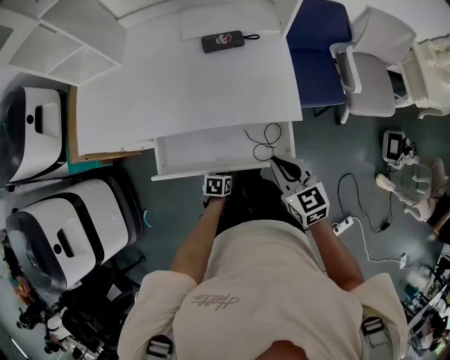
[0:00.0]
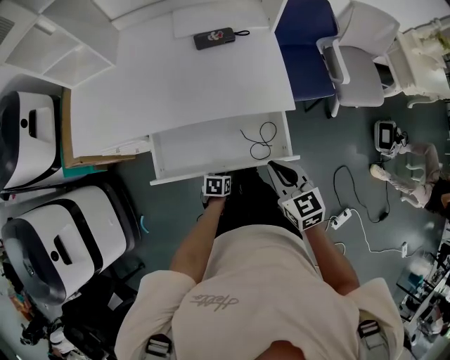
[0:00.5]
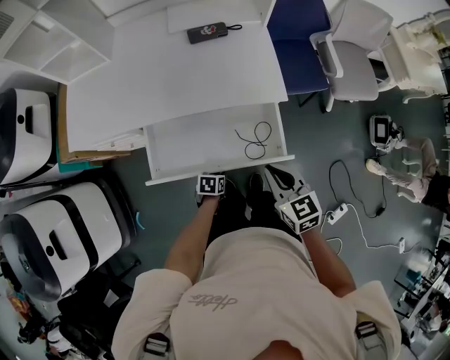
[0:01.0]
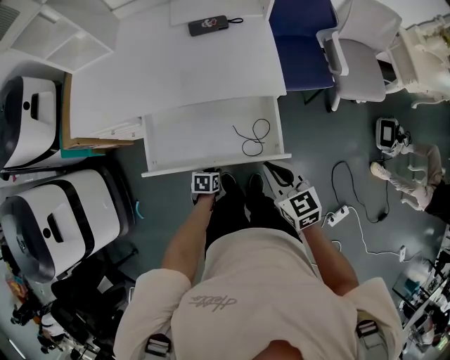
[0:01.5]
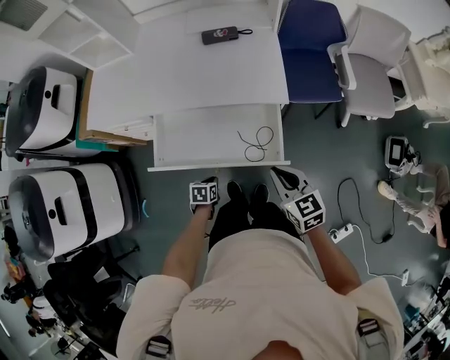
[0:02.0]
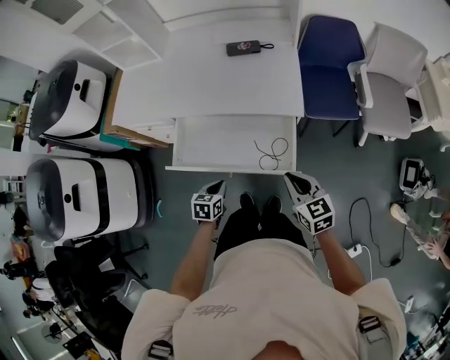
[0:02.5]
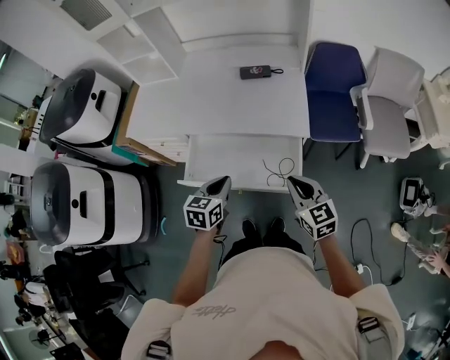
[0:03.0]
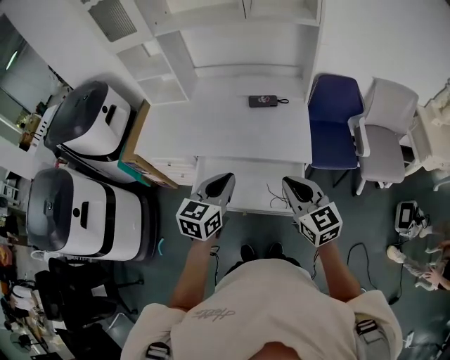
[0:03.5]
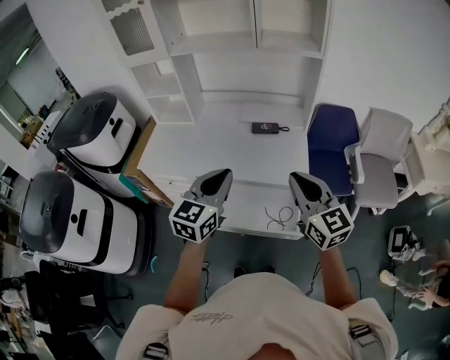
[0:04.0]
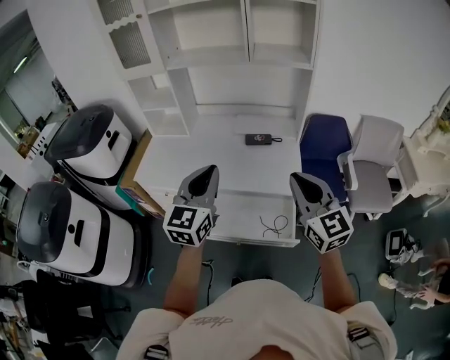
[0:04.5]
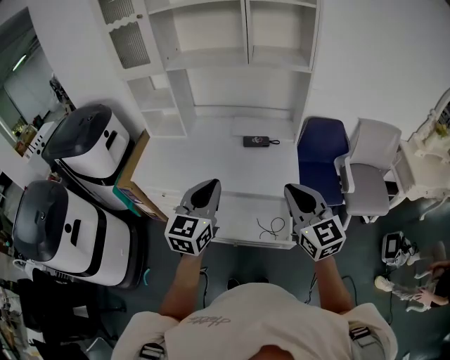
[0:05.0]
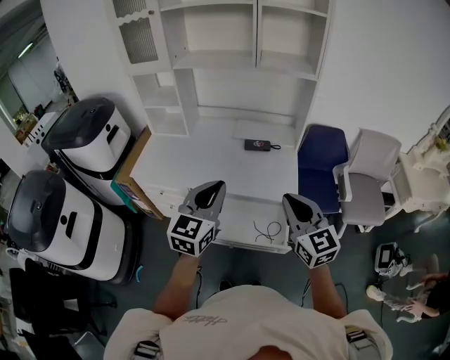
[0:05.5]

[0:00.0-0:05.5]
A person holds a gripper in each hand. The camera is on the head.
0:00.0 to 0:02.0: The right gripper moves backward and to the right, roughly 15 cm, while the left gripper travels backward by about 10 cm.
0:02.0 to 0:03.5: The left gripper shifts about 40 cm upward, and tips its fingers upward by approximately 50 degrees. The right gripper shifts approximately 20 cm upward, and rotates about 20 degrees.
0:03.5 to 0:05.5: Both grippers travel together upward, approximately 10 cm.

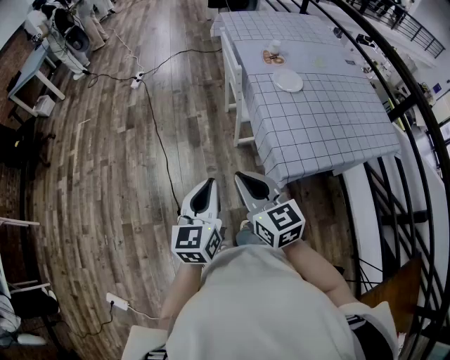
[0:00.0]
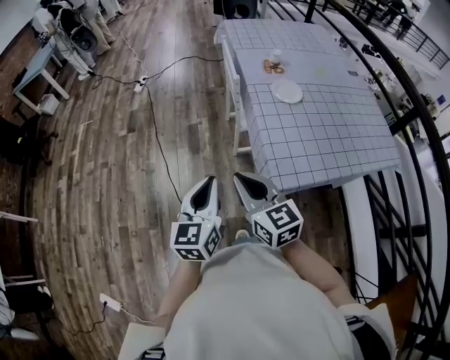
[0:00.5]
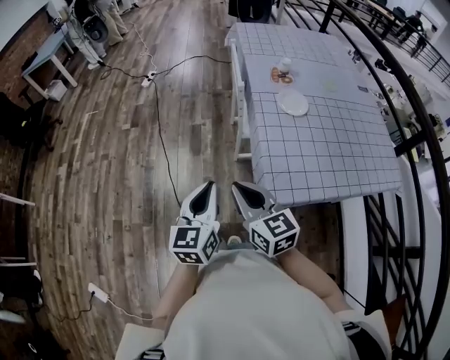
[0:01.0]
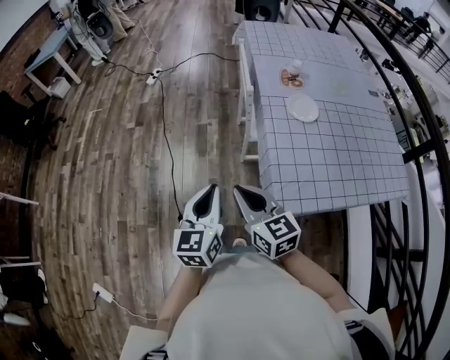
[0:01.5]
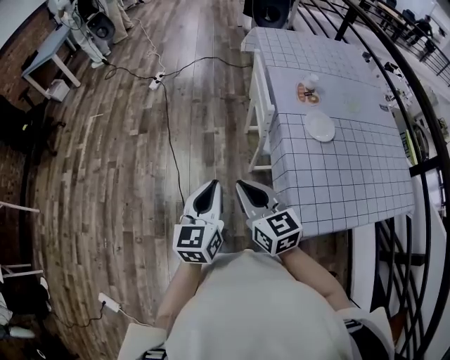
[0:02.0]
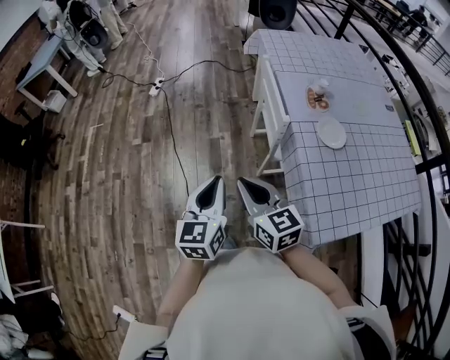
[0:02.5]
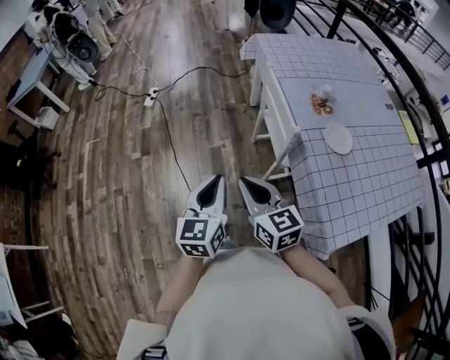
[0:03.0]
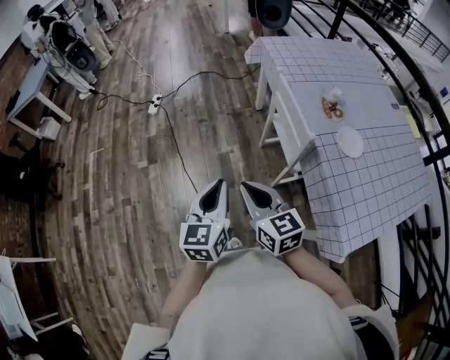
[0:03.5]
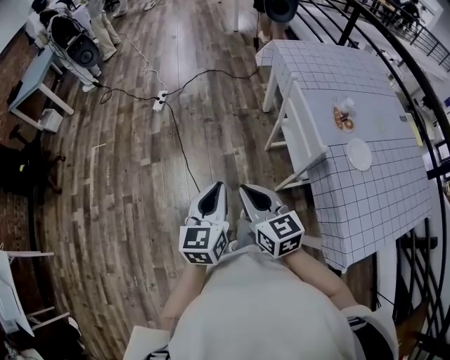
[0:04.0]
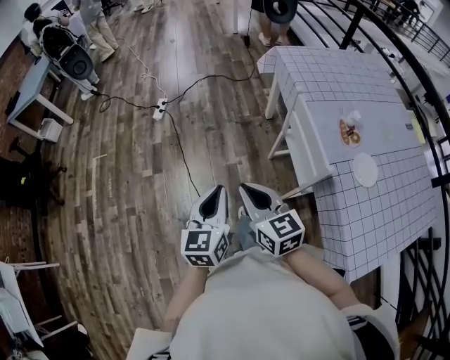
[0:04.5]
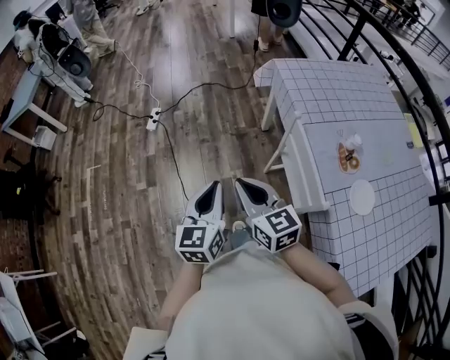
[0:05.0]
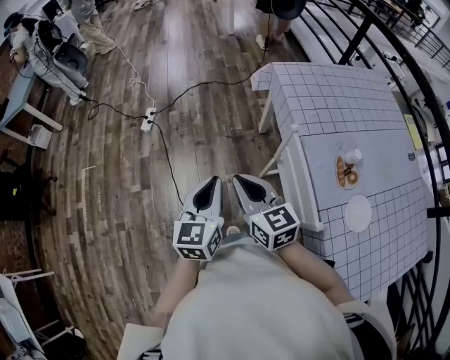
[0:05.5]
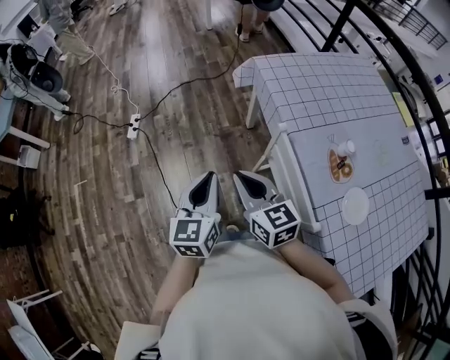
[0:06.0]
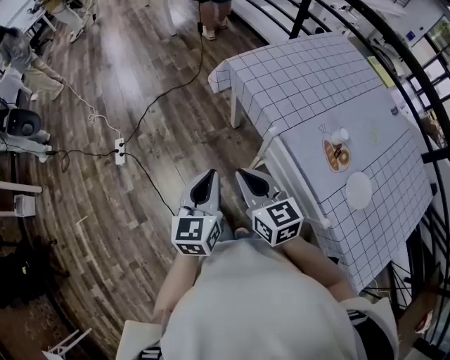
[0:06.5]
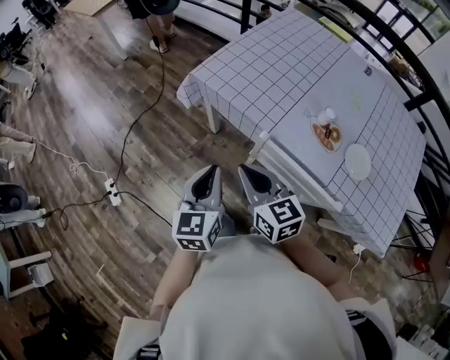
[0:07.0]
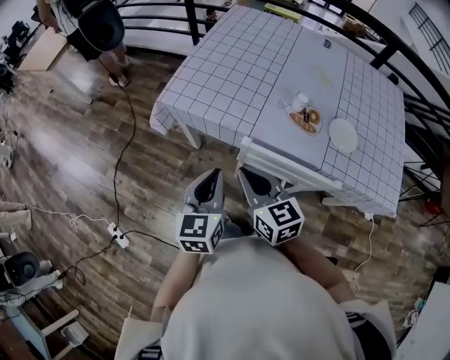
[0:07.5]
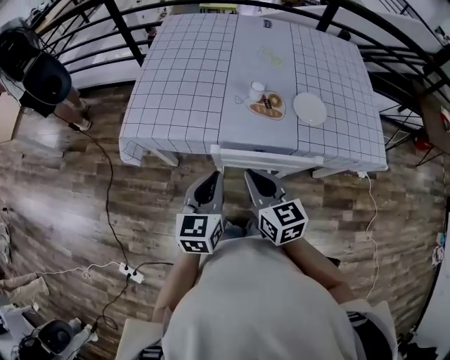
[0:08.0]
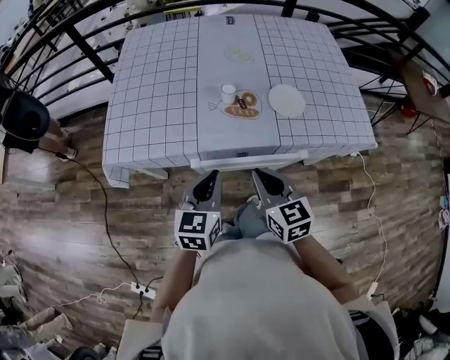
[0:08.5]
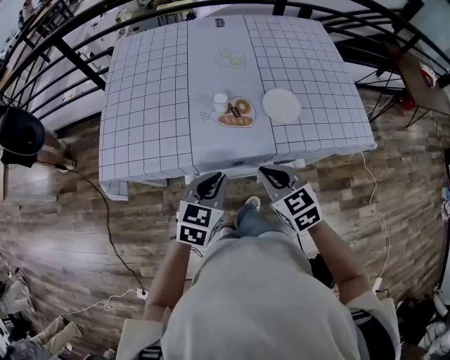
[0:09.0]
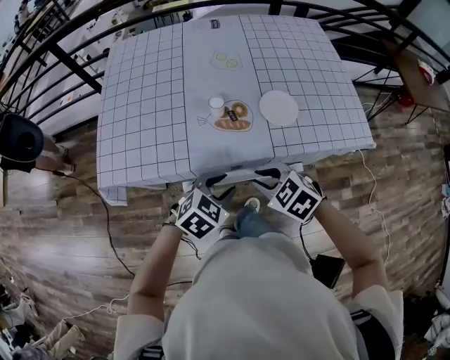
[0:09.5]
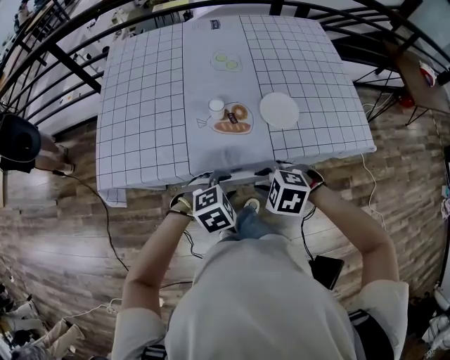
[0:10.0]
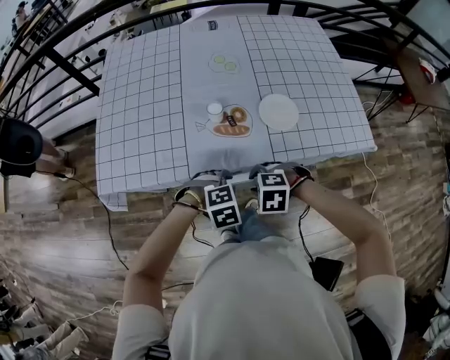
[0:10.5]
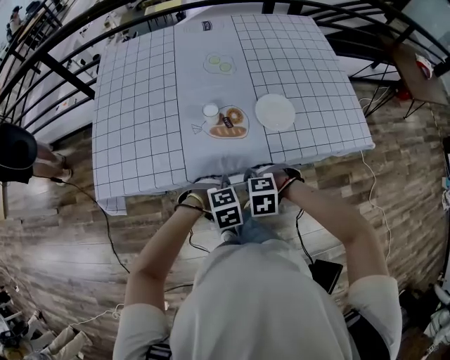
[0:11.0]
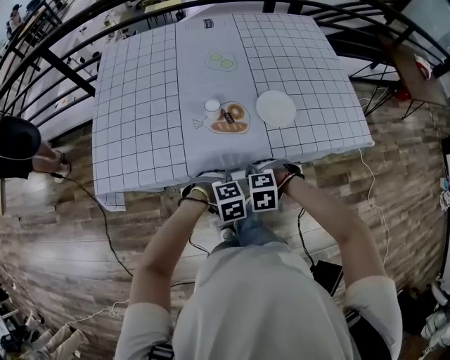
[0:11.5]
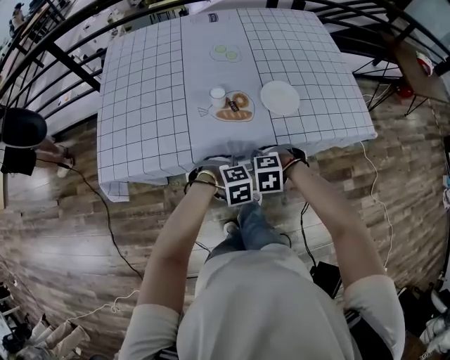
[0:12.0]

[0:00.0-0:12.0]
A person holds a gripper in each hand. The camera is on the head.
0:00.0 to 0:02.0: Both grippers travel together forward, roughly 20 cm.
0:02.0 to 0:04.0: The two grippers go some 25 cm forward and to the left.
0:04.0 to 0:06.0: The two grippers go roughly 30 cm forward.
0:06.0 to 0:08.0: The left gripper changes place by about 20 cm, and changes its angle by approximately 70 degrees, while the right gripper changes place by some 15 cm, and turns by some 70 degrees.
0:08.0 to 0:10.0: The grippers both shift to the right, downward and forward by some 15 cm. The left gripper angles its fingers downward, by roughly 40 degrees, and opens its fingers. The right gripper tips its fingers downward by approximately 50 degrees, and opens.
0:10.0 to 0:12.0: Both grippers move downward, approximately 10 cm. The left gripper turns by about 20 degrees.

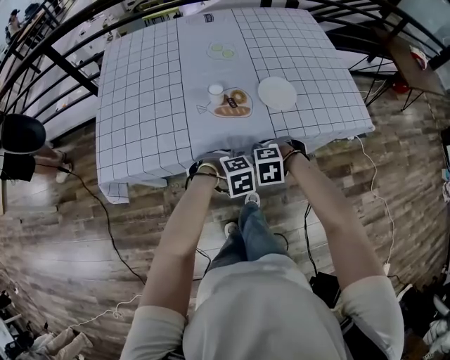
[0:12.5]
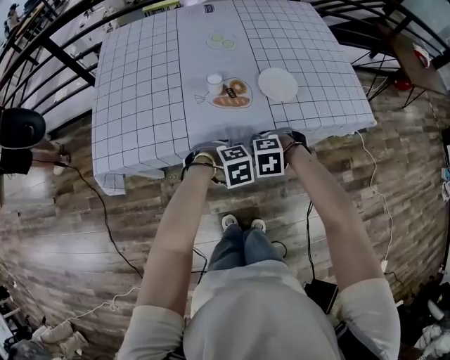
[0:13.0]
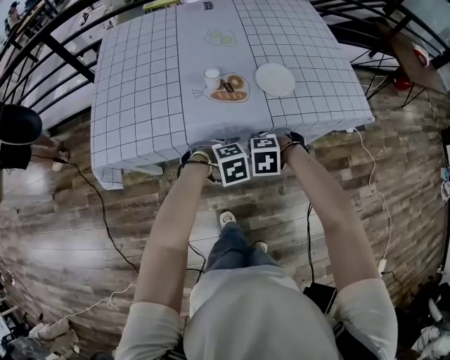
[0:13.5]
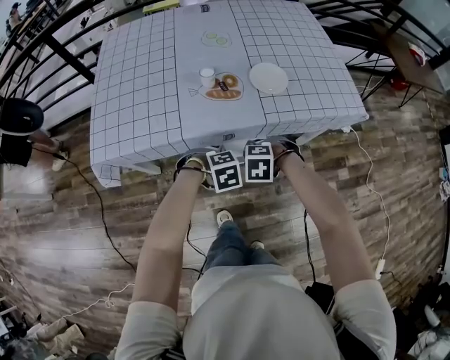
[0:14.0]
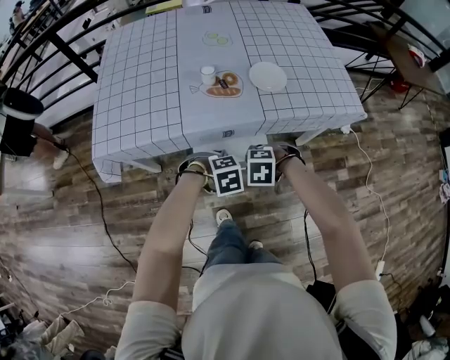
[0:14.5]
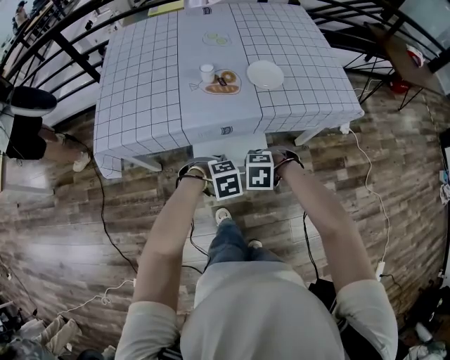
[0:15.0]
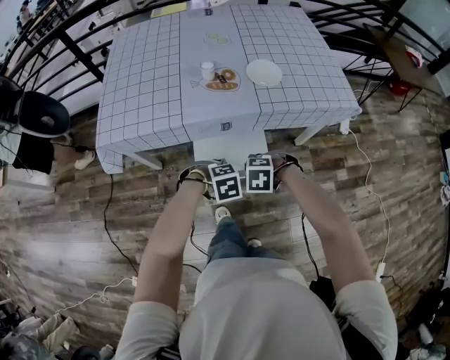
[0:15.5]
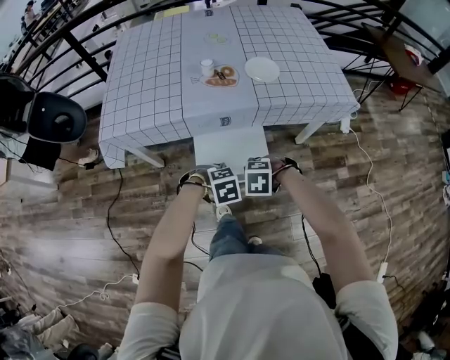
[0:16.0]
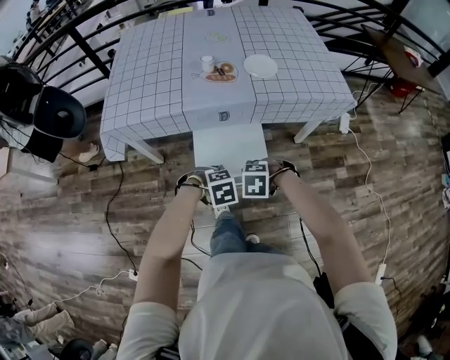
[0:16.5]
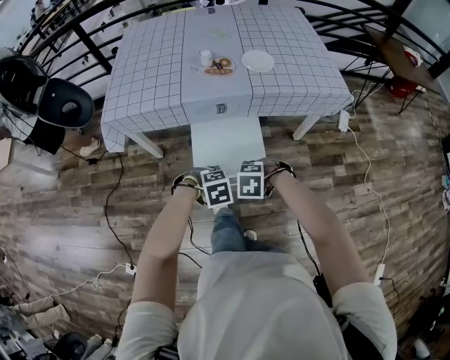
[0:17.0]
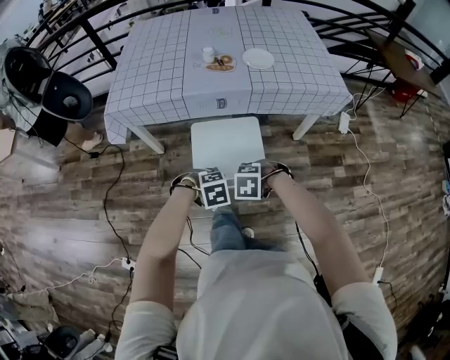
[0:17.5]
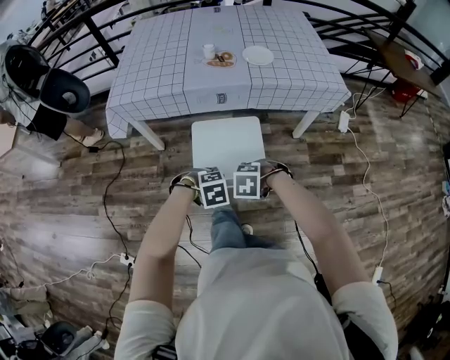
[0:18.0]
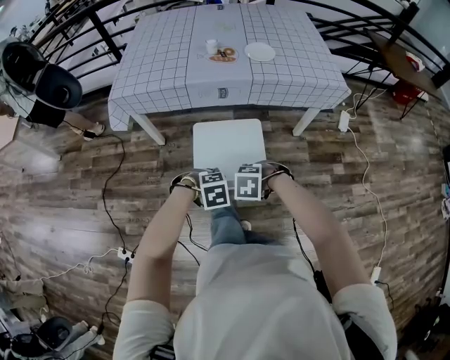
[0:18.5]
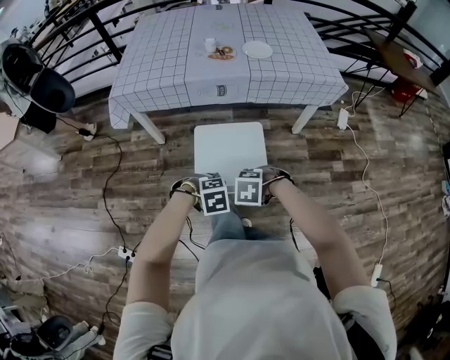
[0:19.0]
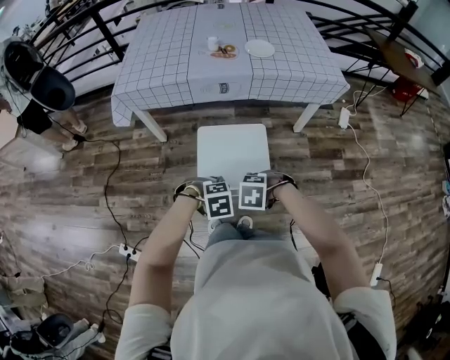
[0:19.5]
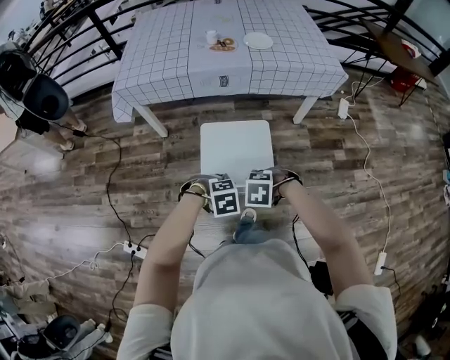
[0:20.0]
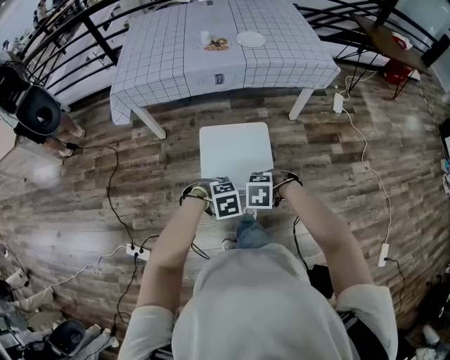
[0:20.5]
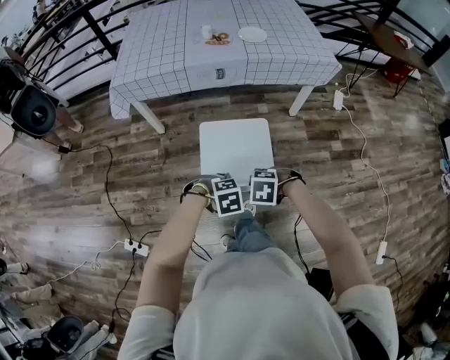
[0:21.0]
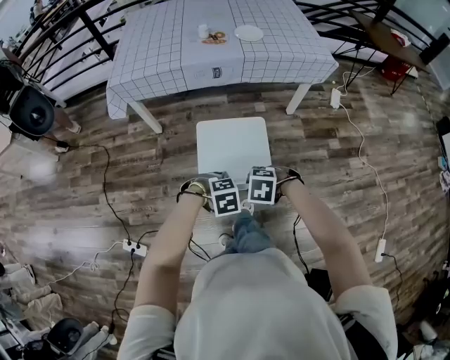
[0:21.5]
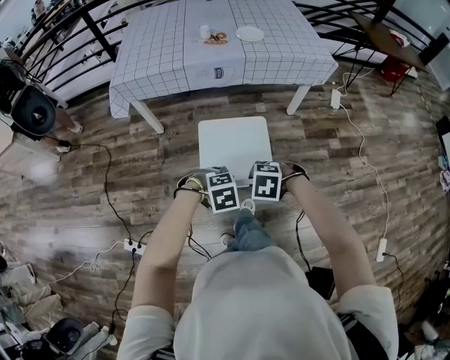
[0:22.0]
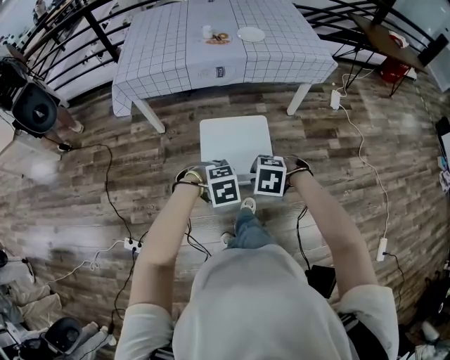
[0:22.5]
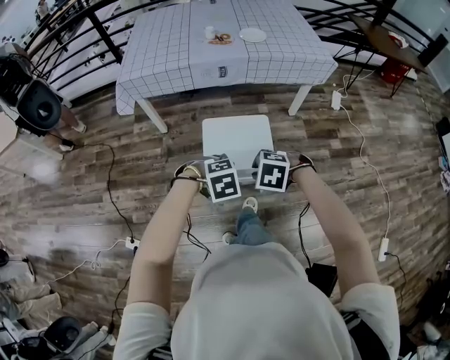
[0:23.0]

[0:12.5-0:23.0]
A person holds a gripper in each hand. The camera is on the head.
0:12.5 to 0:14.5: The left gripper shifts by about 10 cm. The right gripper changes place by roughly 10 cm.
0:14.5 to 0:16.5: The left gripper moves some 15 cm, while the right gripper ends up approximately 15 cm from where it was.
0:16.5 to 0:19.0: The right gripper ends up some 20 cm from where it was, while the left gripper shifts by some 20 cm.
0:19.0 to 0:21.0: The left gripper shifts by about 10 cm. The right gripper ends up about 10 cm from where it was.
0:21.0 to 0:23.0: The two grippers go about 5 cm upward.
